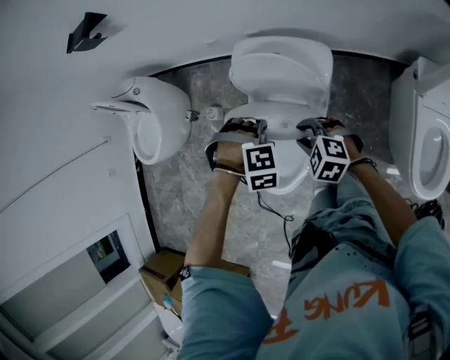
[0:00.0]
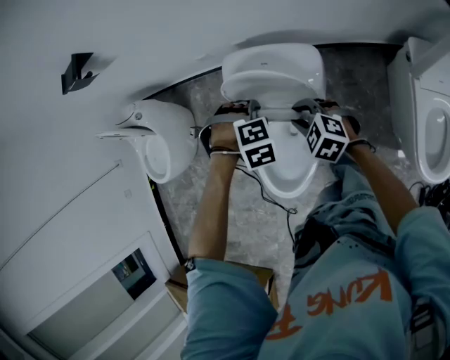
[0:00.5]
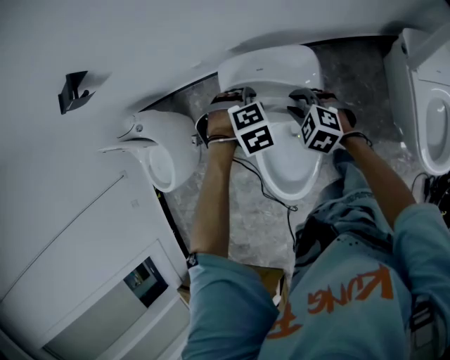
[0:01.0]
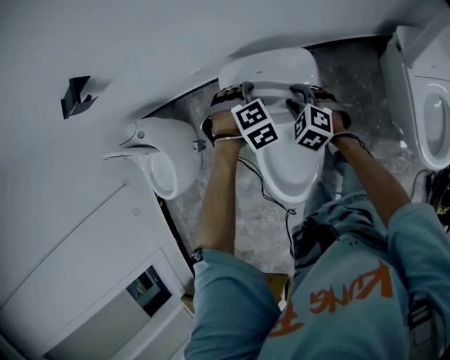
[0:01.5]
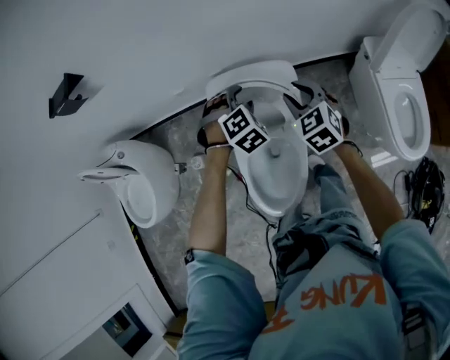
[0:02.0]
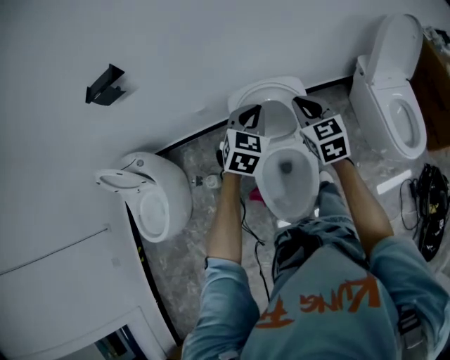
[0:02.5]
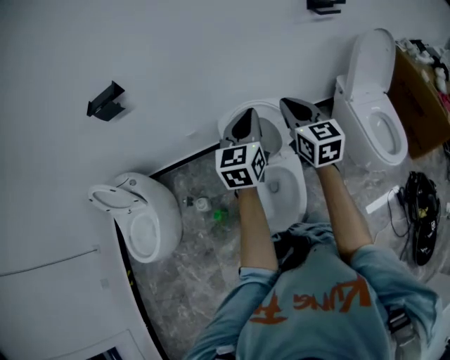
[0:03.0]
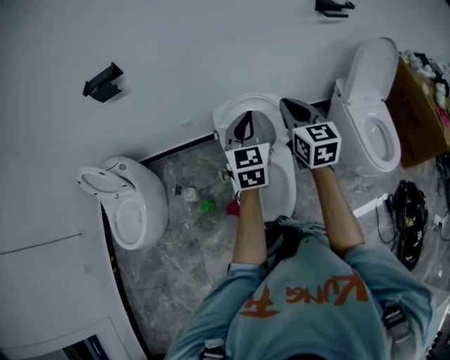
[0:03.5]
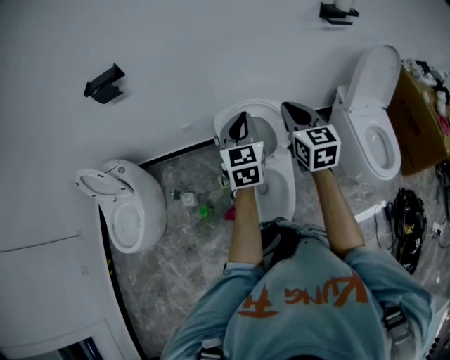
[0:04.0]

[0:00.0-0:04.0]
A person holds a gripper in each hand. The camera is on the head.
0:00.0 to 0:02.0: The left gripper shifts by approximately 15 cm, and swivels roughly 30 degrees. Meanwhile the right gripper ends up about 20 cm from where it was, and swivels approximately 50 degrees.
0:02.0 to 0:04.0: The grippers both shift upward and backward by about 25 cm. The left gripper angles its fingers upward, by roughly 50 degrees, and closes its fingers; the right gripper rotates about 40 degrees, and closes.

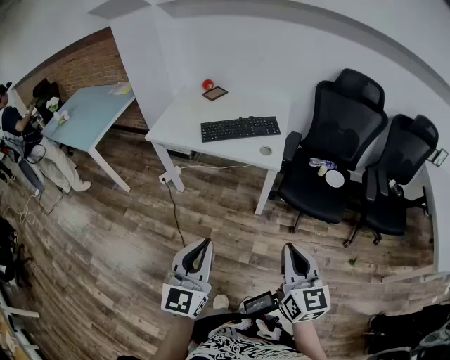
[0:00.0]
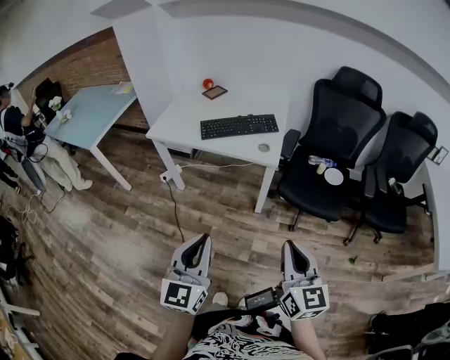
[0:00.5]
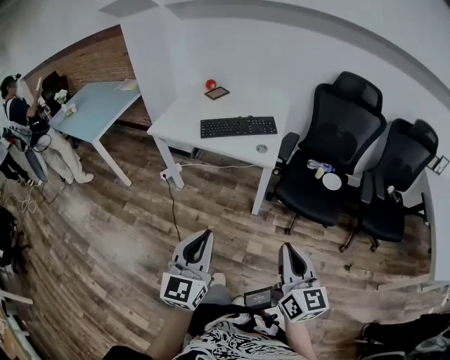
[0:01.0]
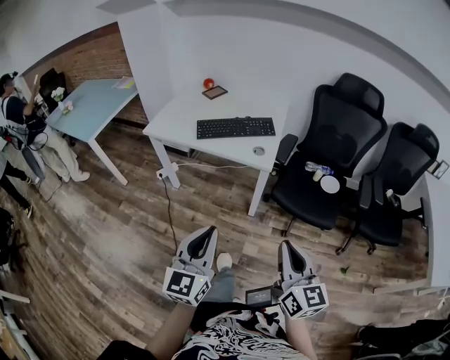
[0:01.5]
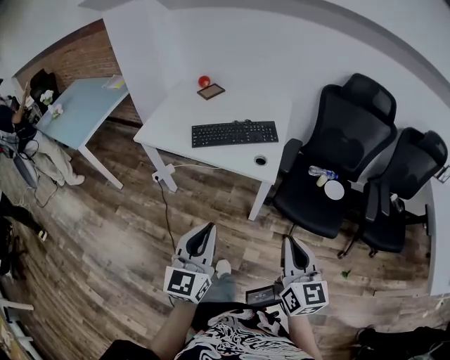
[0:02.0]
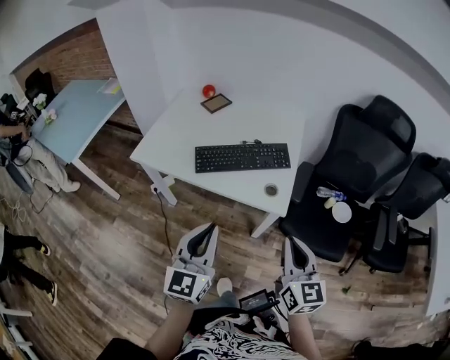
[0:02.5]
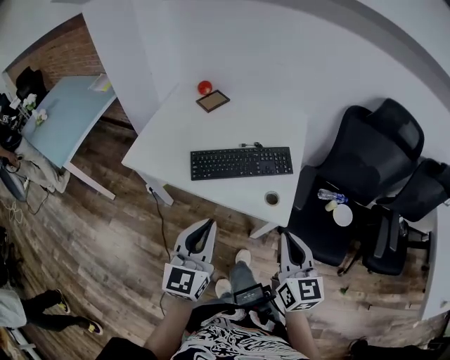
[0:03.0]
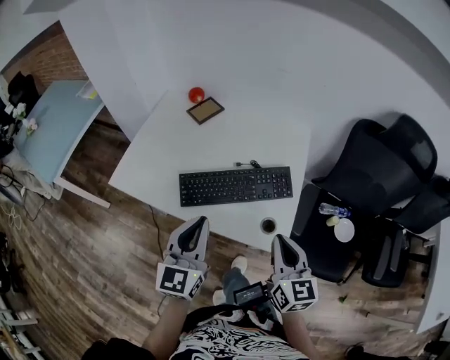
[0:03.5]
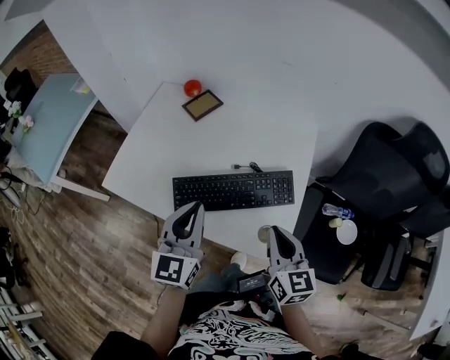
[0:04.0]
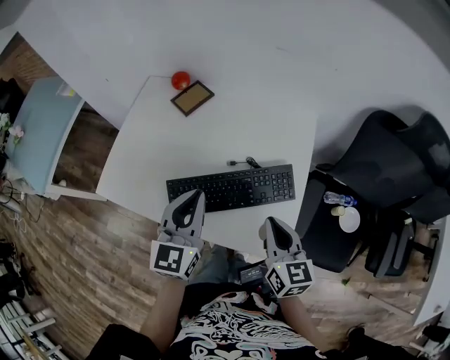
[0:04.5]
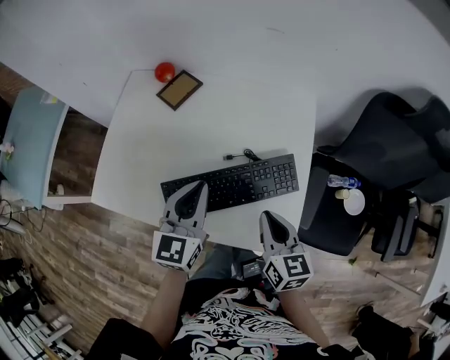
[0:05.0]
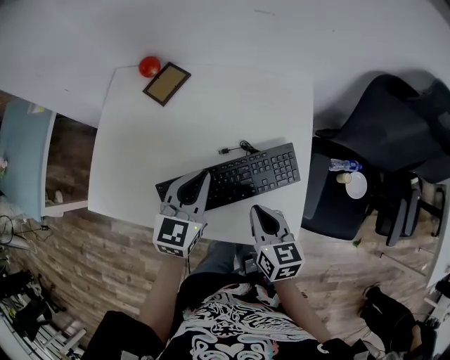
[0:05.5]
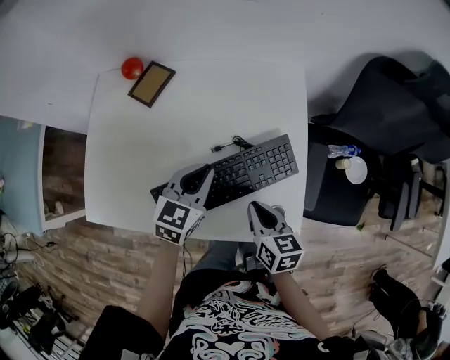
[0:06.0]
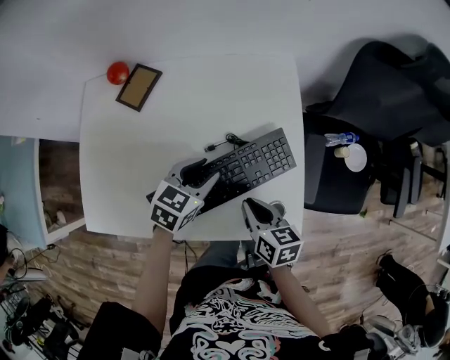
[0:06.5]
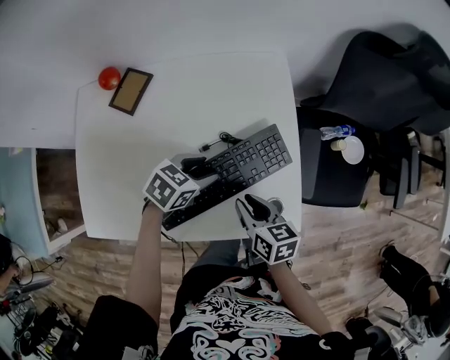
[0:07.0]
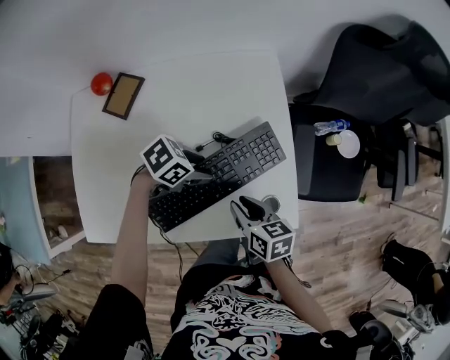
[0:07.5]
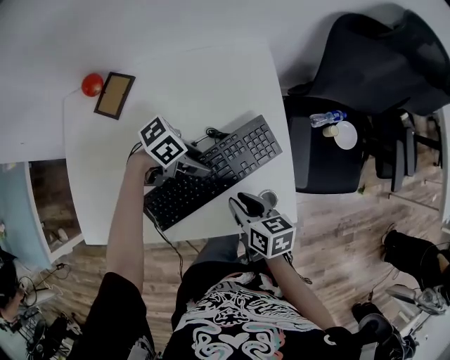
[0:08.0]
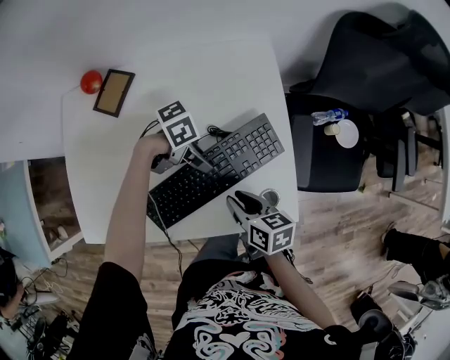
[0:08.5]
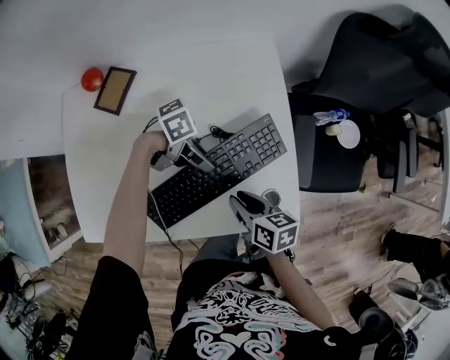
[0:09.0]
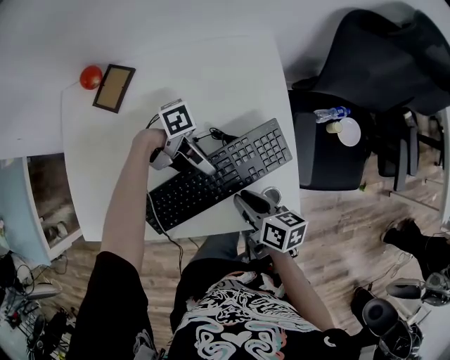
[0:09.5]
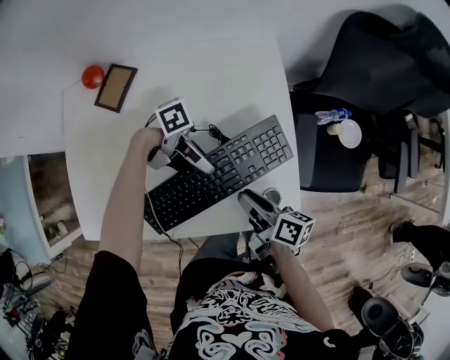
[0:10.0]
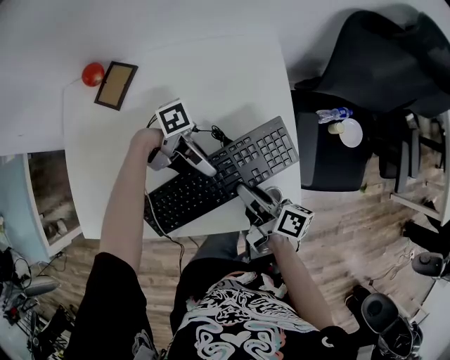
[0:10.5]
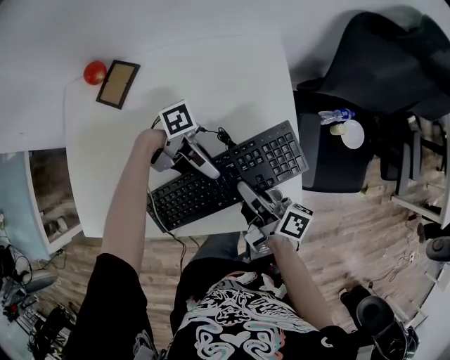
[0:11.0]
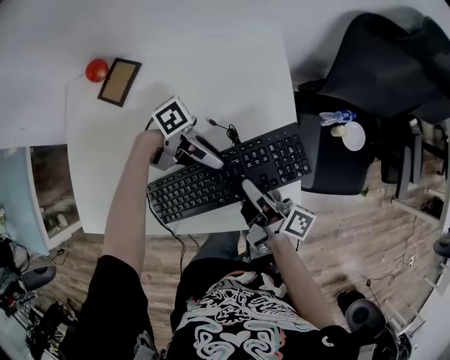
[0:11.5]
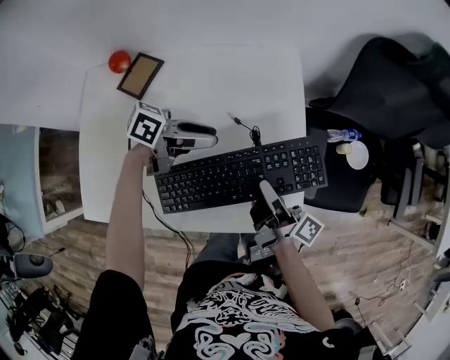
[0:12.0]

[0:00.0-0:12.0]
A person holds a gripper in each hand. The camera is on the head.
0:00.0 to 0:02.0: The right gripper travels forward and to the right by approximately 15 cm, while the left gripper travels forward by roughly 15 cm.
0:02.0 to 0:04.0: The two grippers travel together, forward, some 50 cm.
0:04.0 to 0:06.0: Both grippers move downward and forward, some 20 cm. The left gripper turns by roughly 40 degrees, while the right gripper swivels about 30 degrees.
0:06.0 to 0:08.0: The left gripper is displaced downward by some 10 cm, turns by about 70 degrees, and opens its fingers.
0:08.0 to 0:10.0: The right gripper turns by some 30 degrees. Meanwhile the left gripper tilts its fingers some 30 degrees upward, and closes up.
0:10.0 to 0:12.0: The right gripper shifts roughly 5 cm upward, and changes its angle by roughly 30 degrees. The left gripper ends up some 10 cm from where it was, and rotates about 50 degrees.

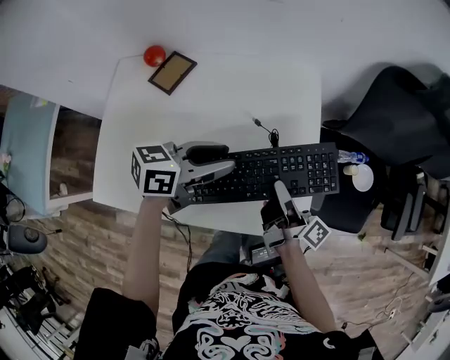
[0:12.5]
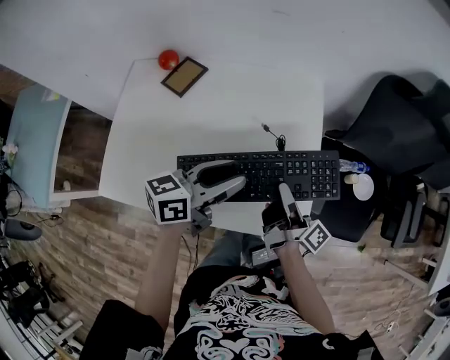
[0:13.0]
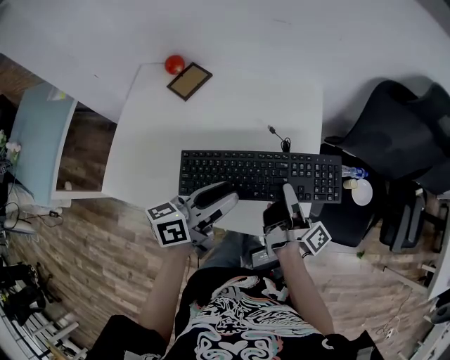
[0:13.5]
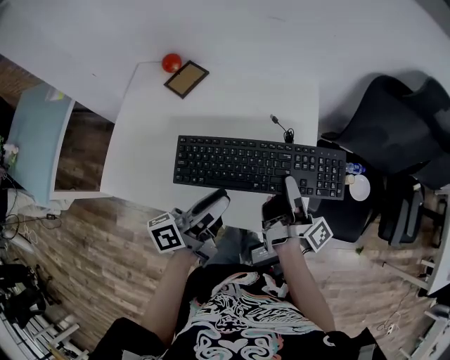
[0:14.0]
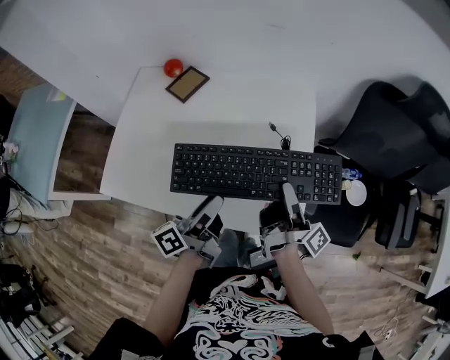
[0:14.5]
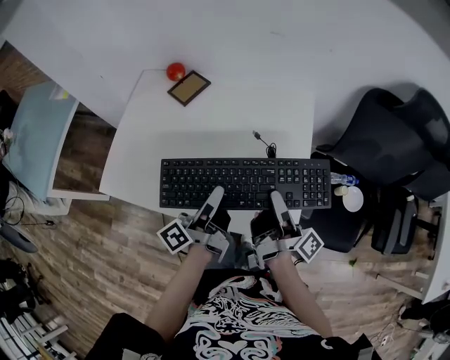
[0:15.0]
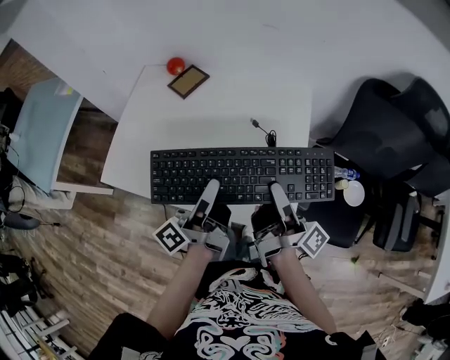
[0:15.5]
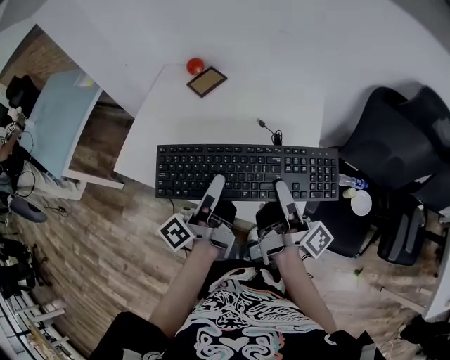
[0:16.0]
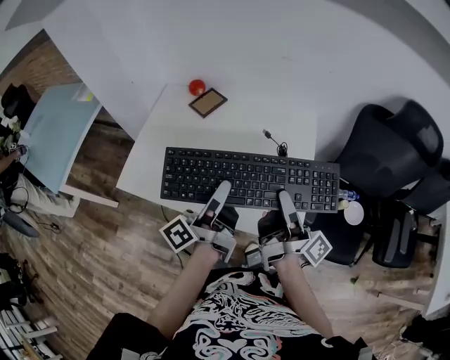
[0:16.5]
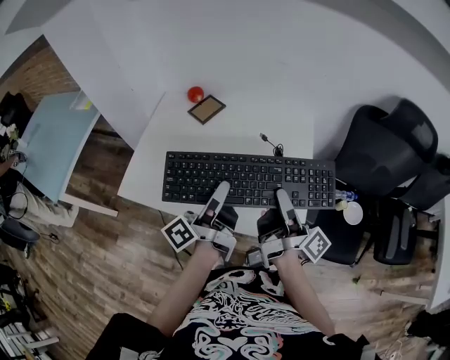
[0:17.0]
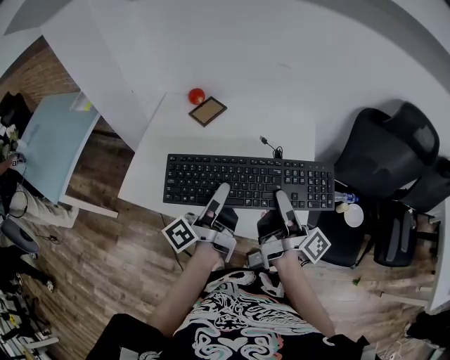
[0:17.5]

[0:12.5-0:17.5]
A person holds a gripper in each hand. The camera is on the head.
0:12.5 to 0:15.0: The left gripper goes about 10 cm downward, and swivels about 70 degrees.
0:15.0 to 0:17.5: The left gripper moves upward, some 5 cm; the right gripper shifts by roughly 5 cm.

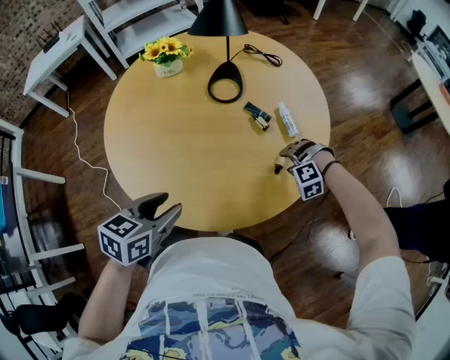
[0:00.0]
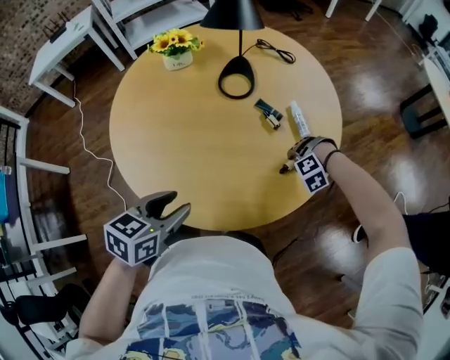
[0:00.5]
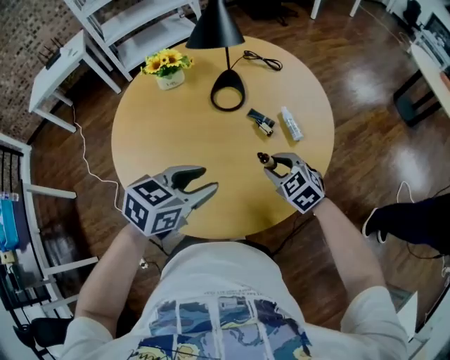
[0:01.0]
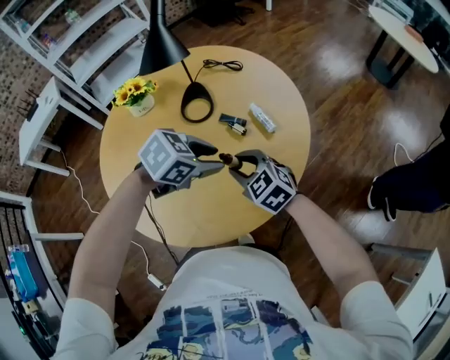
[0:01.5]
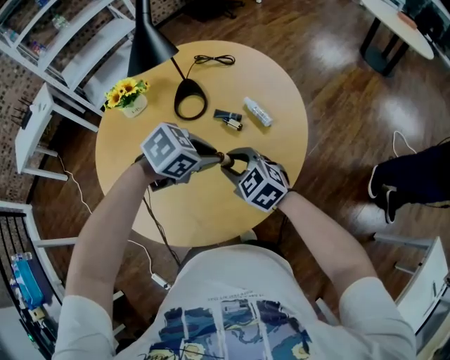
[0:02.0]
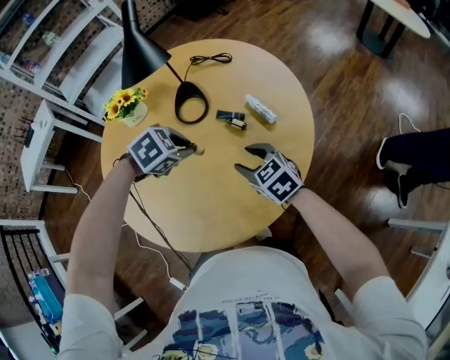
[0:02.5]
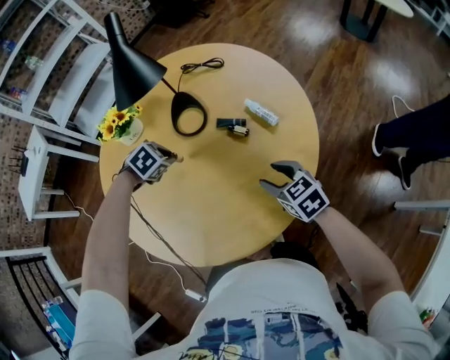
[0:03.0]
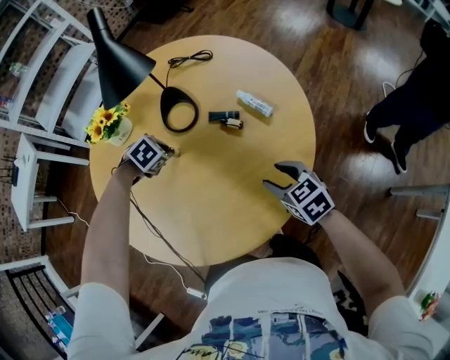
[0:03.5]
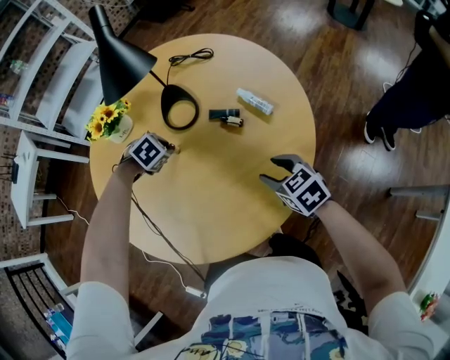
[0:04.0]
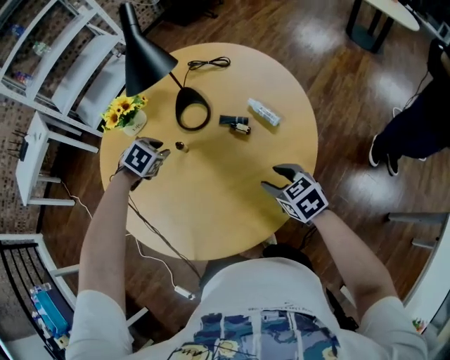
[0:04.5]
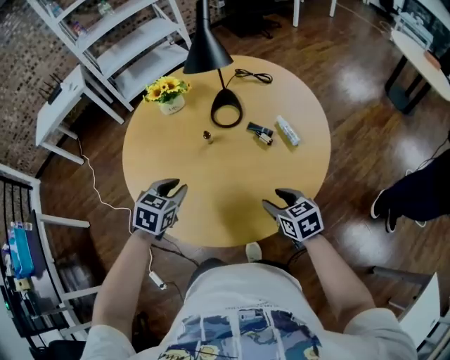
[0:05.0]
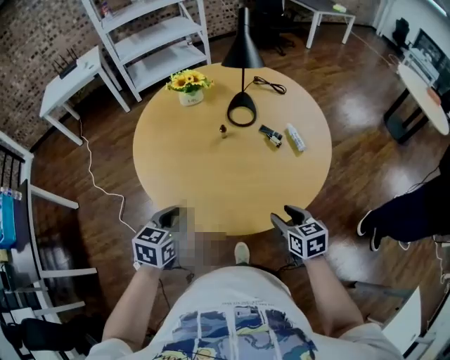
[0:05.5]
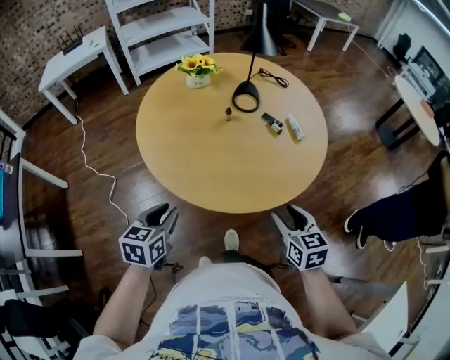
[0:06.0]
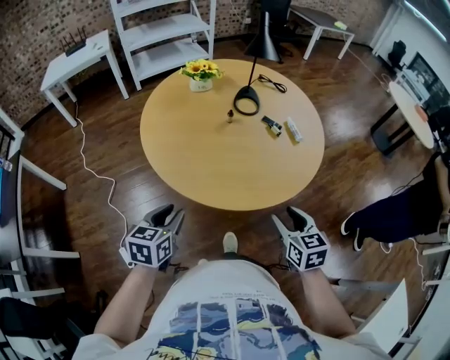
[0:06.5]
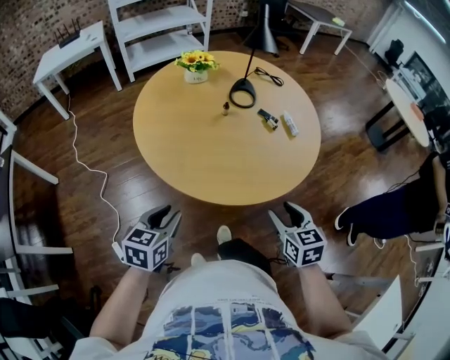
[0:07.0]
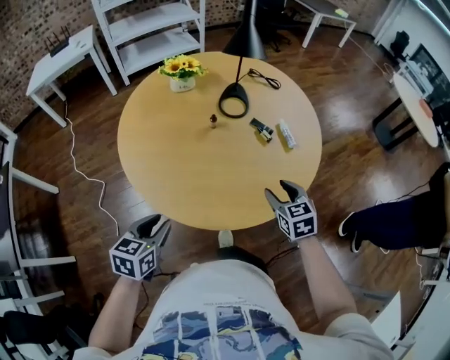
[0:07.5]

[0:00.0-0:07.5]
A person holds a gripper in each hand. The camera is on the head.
0:00.0 to 0:02.0: The right gripper moves upward, some 15 cm, rotates around the line of its fingers by about 70 degrees, clockwise from behind, and closes its fingers. Meanwhile the left gripper changes place by some 20 cm, and changes its angle by some 60 degrees.
0:02.0 to 0:04.0: The right gripper changes place by approximately 10 cm, rotates roughly 30 degrees, and opens up, while the left gripper changes place by roughly 30 cm, and swivels roughly 30 degrees.
0:04.0 to 0:05.5: The right gripper shifts by roughly 15 cm, while the left gripper ends up about 40 cm from where it was, and tips its fingers upward by roughly 40 degrees.
0:05.5 to 0:07.5: The right gripper moves forward, some 5 cm. The left gripper goes backward and returns, some 15 cm each way.
